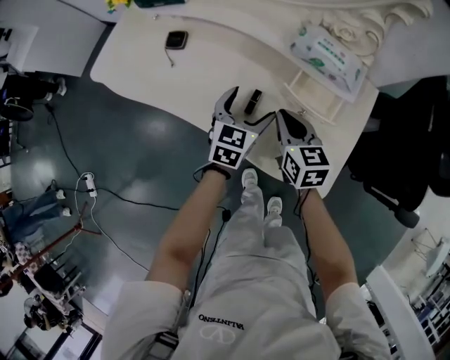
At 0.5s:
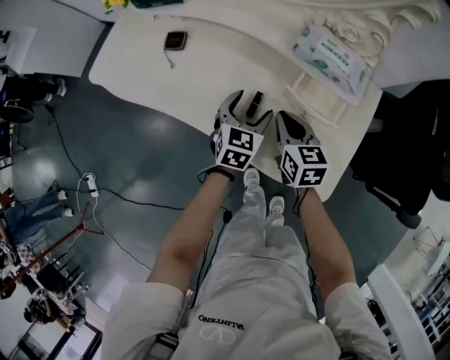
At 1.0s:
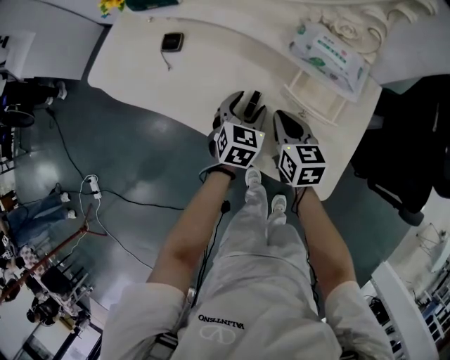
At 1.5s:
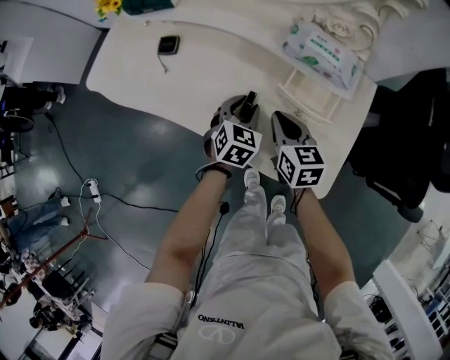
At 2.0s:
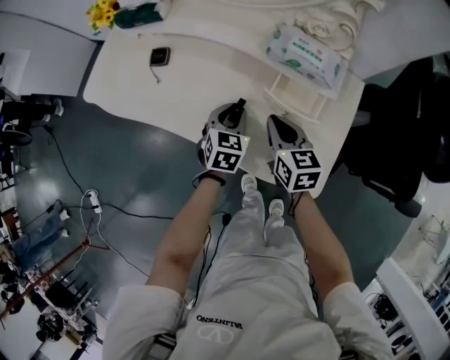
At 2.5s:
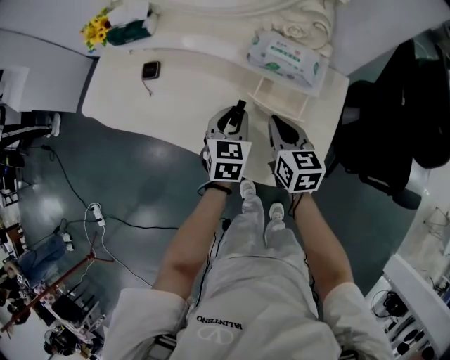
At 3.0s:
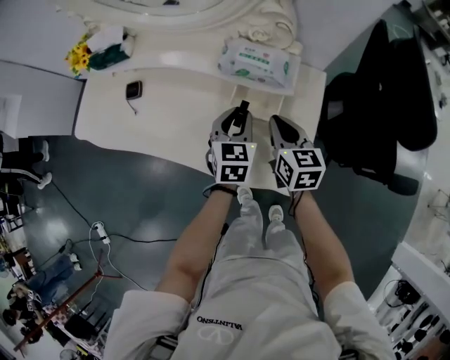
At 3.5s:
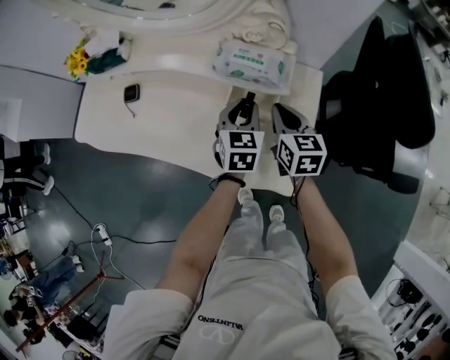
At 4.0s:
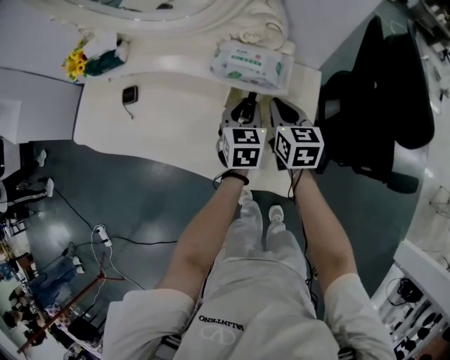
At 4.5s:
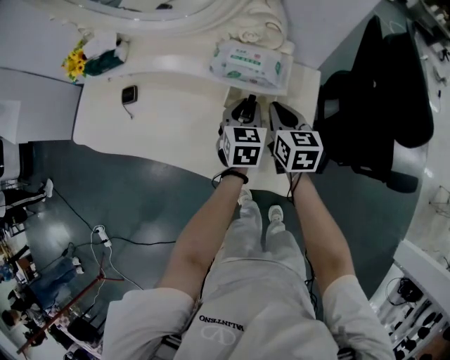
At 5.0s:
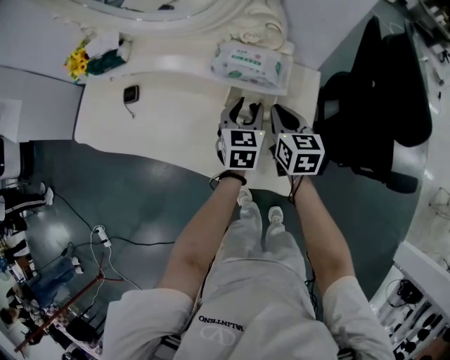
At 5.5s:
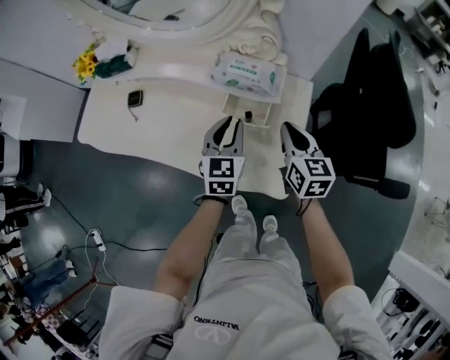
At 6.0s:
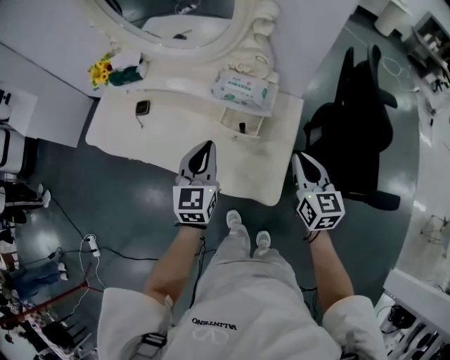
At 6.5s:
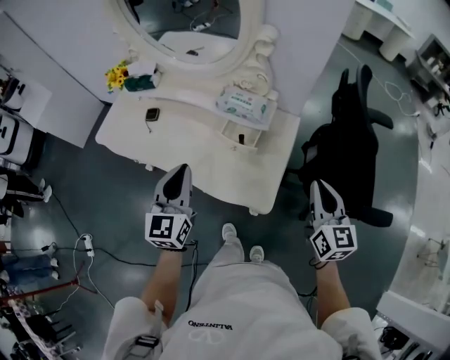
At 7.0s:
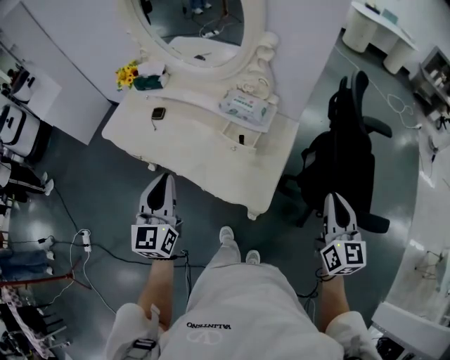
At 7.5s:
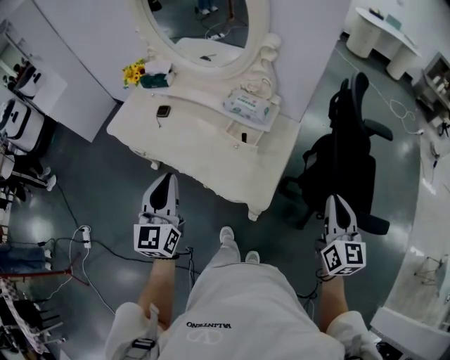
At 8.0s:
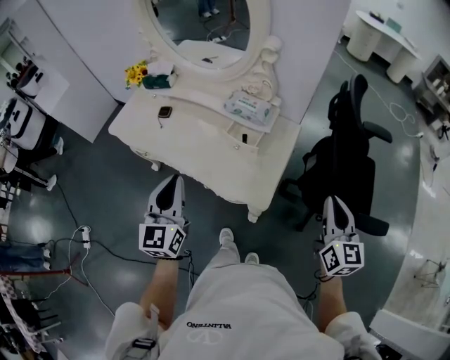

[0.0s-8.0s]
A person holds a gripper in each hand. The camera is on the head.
0.0s to 2.0s: The left gripper closes its fingers.
2.0s to 4.0s: The left gripper travels to the right and upward by roughly 15 cm. The right gripper moves to the right, approximately 15 cm.
4.0s to 6.0s: The left gripper moves upward, backward and to the left, roughly 20 cm, while the right gripper goes about 20 cm backward, upward and to the right.
6.0s to 8.0s: The right gripper shifts about 20 cm backward, to the right and upward. The left gripper shifts roughly 20 cm backward, upward and to the left.

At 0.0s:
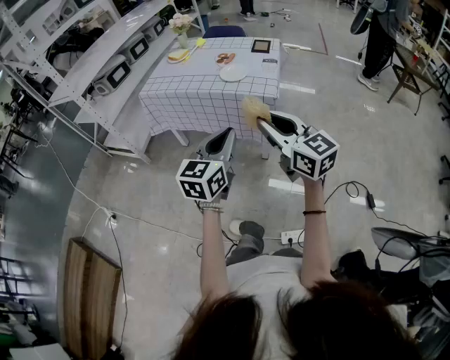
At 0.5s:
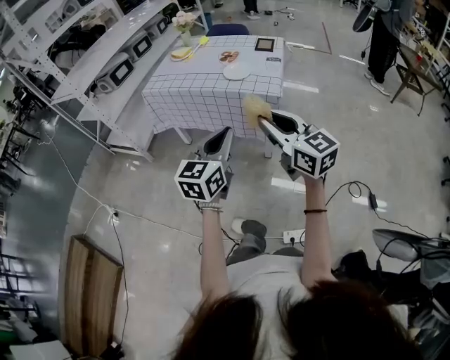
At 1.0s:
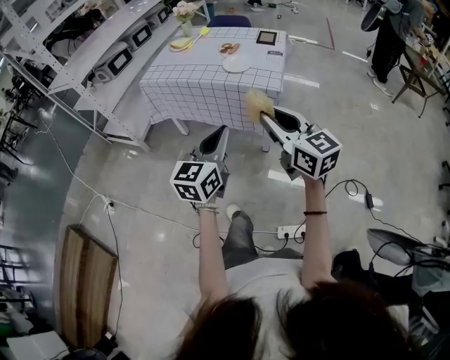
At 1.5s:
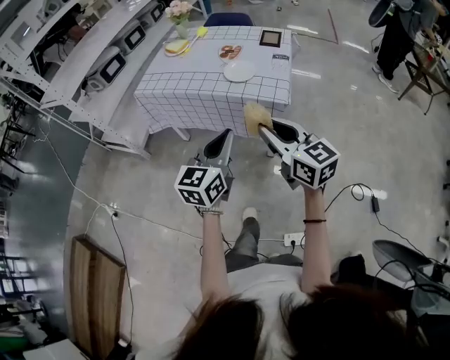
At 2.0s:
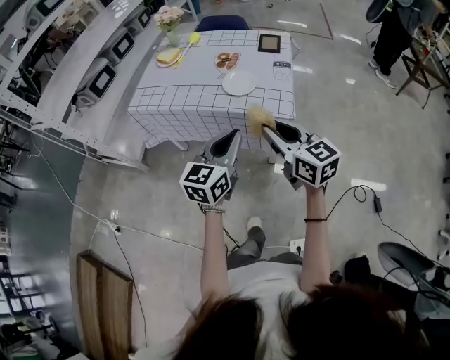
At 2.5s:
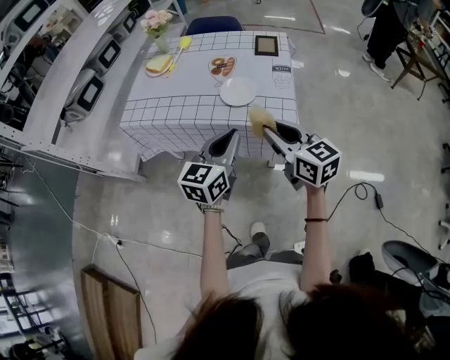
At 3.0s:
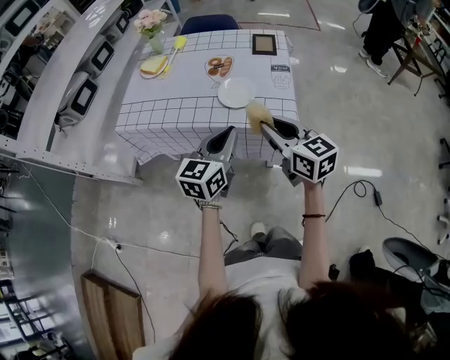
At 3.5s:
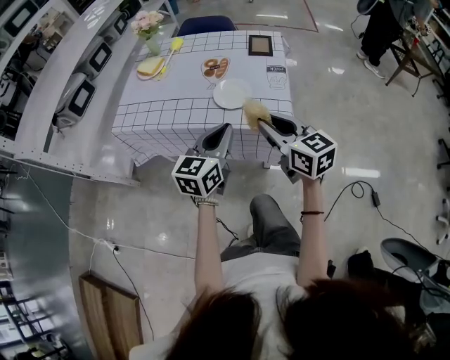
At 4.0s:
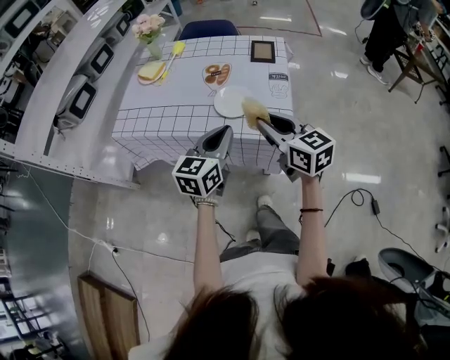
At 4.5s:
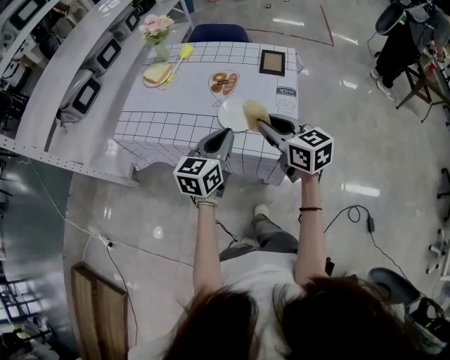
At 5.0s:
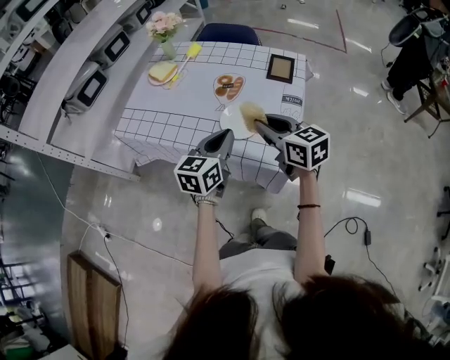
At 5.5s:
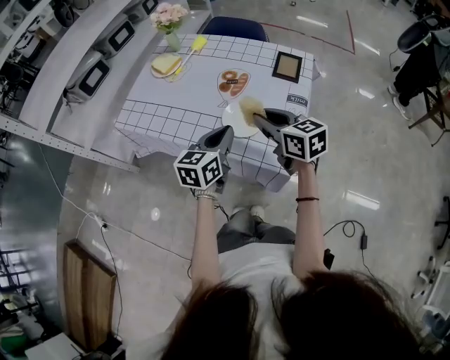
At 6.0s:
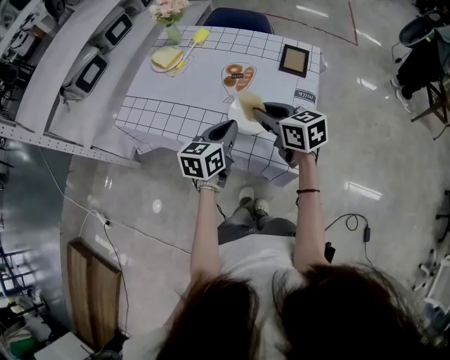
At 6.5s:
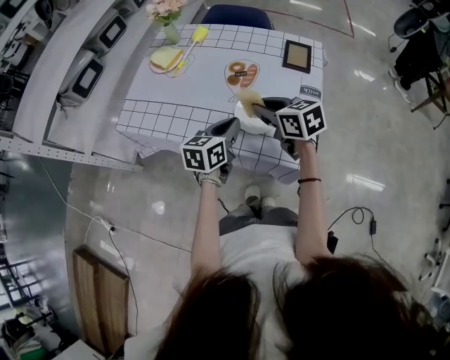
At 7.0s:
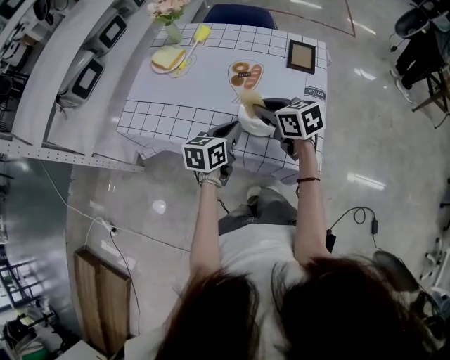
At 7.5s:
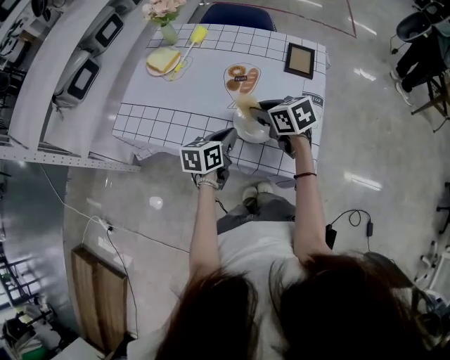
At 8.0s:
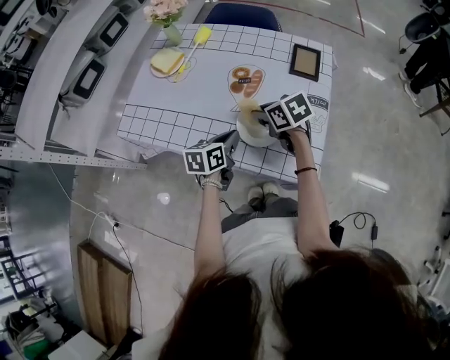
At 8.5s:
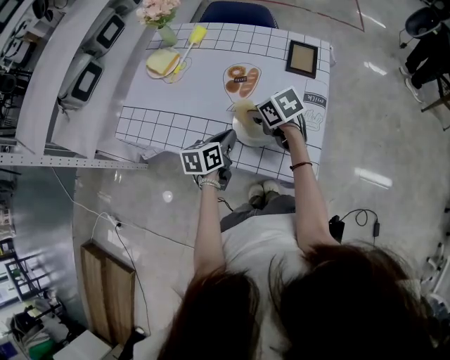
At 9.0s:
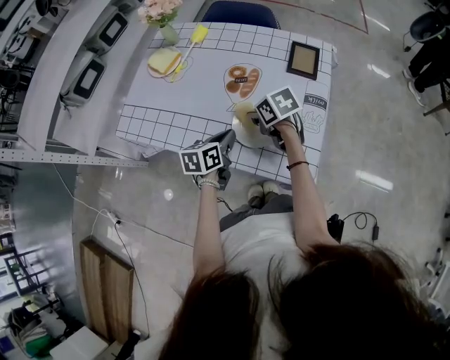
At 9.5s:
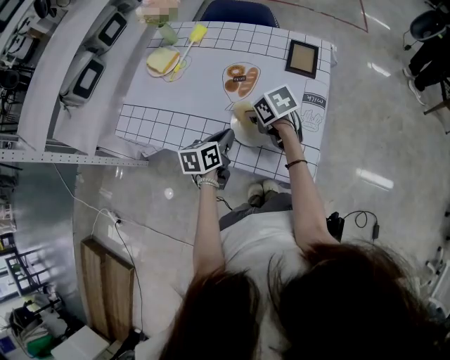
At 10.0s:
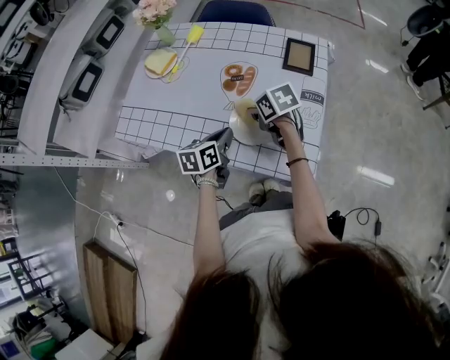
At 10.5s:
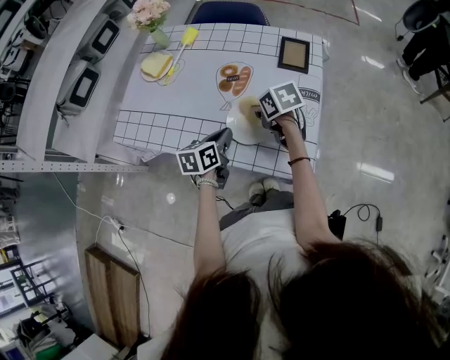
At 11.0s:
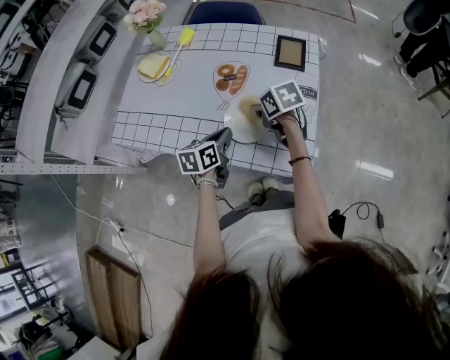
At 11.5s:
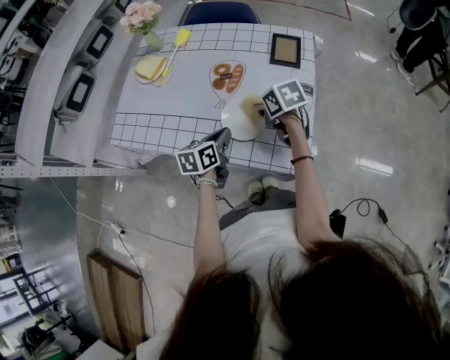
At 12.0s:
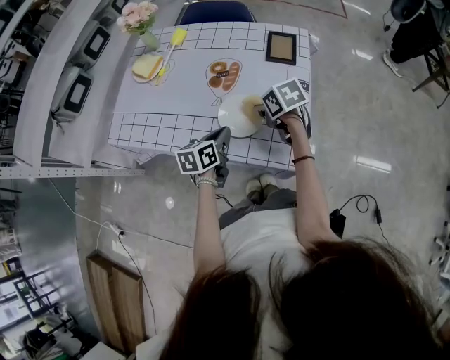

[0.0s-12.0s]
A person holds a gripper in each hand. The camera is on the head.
0.0s to 2.0s: Both grippers travel together forward, some 20 cm.
2.0s to 4.0s: Both grippers travel together forward, roughly 15 cm.
4.0s to 6.0s: The left gripper moves forward and downward, roughly 15 cm. Meanwhile the right gripper is displaced forward by about 15 cm.
6.0s to 8.0s: The left gripper travels downward by approximately 10 cm, while the right gripper goes some 10 cm downward and forward, and swivels roughly 20 degrees.
8.0s to 10.0s: There are only small adjustments of the grippers.
10.0s to 12.0s: The right gripper shifts approximately 5 cm to the right.

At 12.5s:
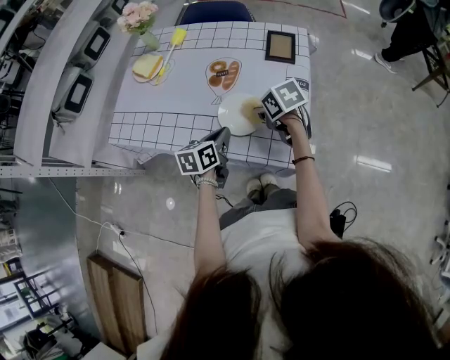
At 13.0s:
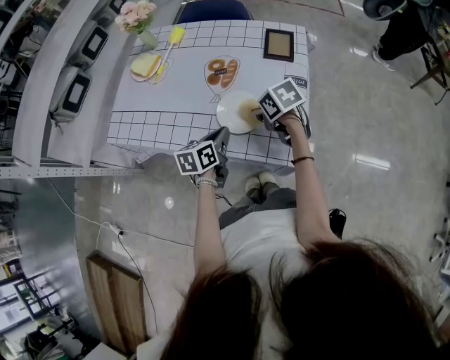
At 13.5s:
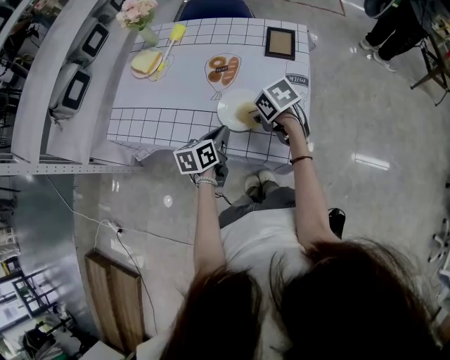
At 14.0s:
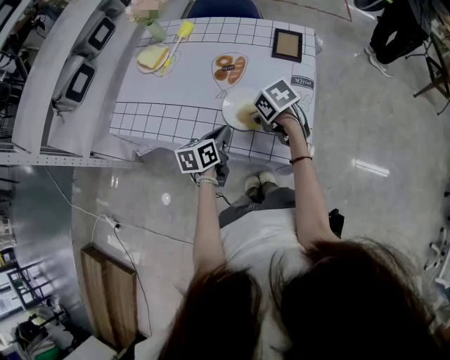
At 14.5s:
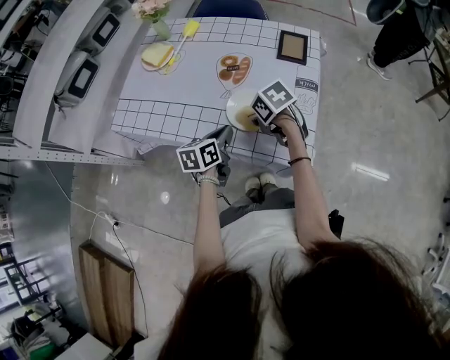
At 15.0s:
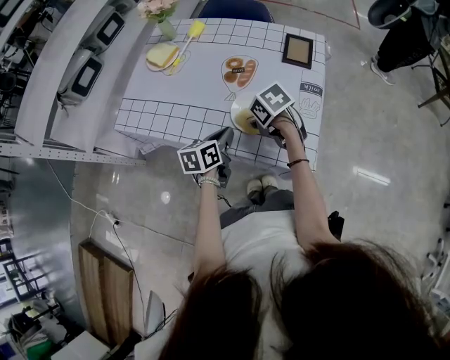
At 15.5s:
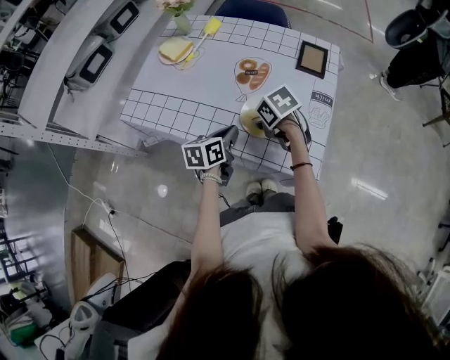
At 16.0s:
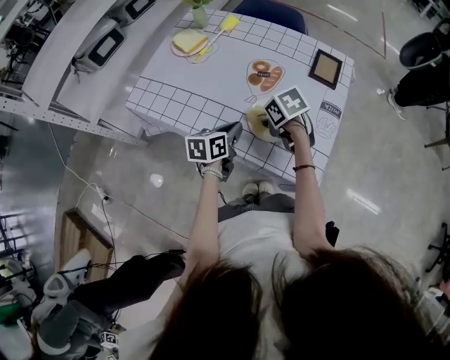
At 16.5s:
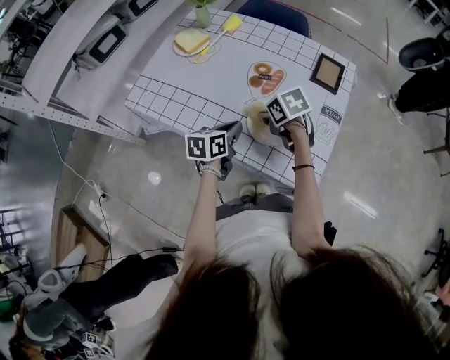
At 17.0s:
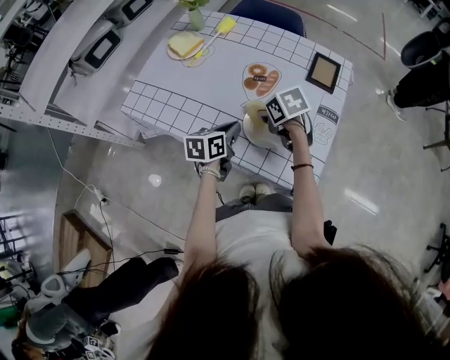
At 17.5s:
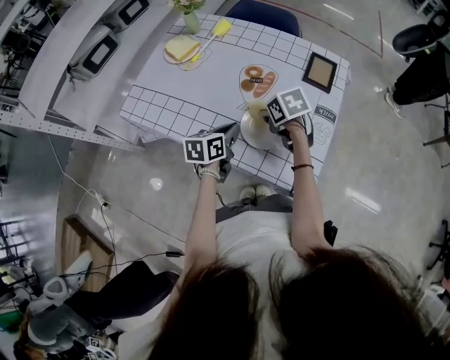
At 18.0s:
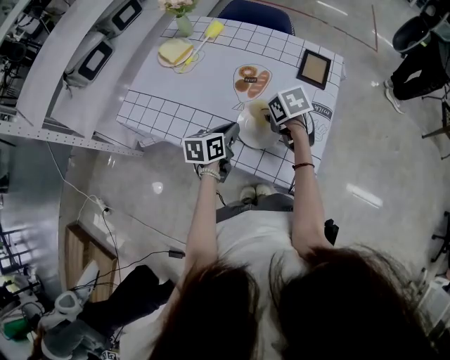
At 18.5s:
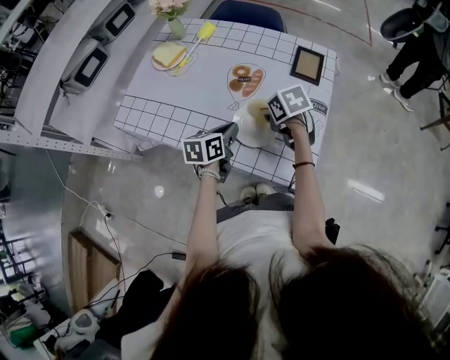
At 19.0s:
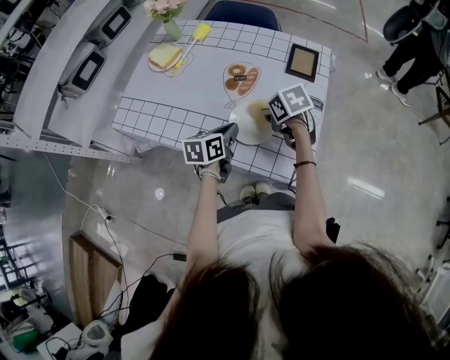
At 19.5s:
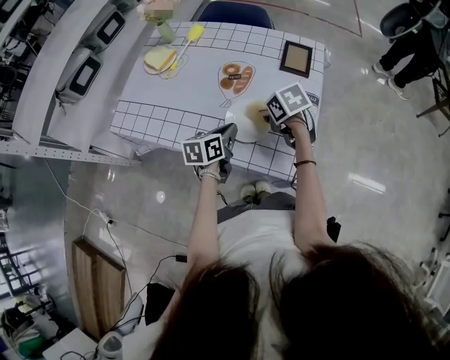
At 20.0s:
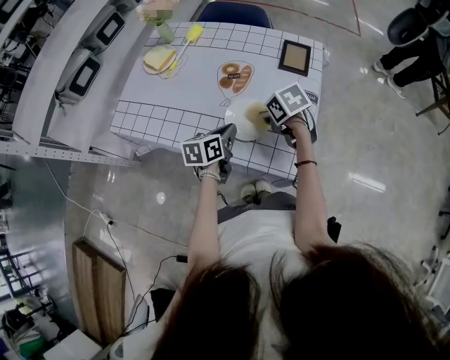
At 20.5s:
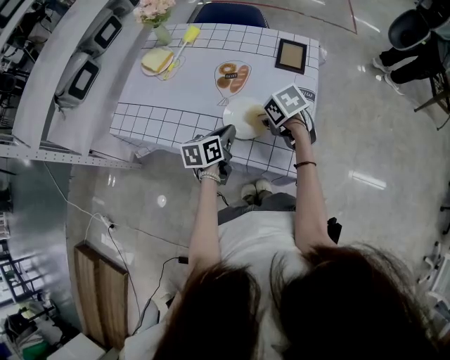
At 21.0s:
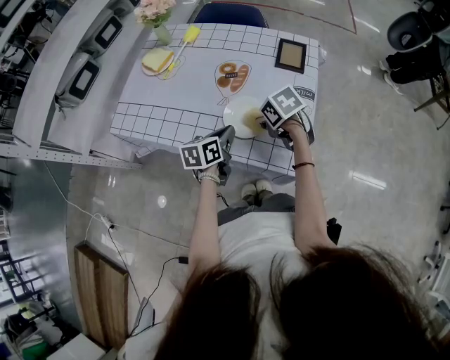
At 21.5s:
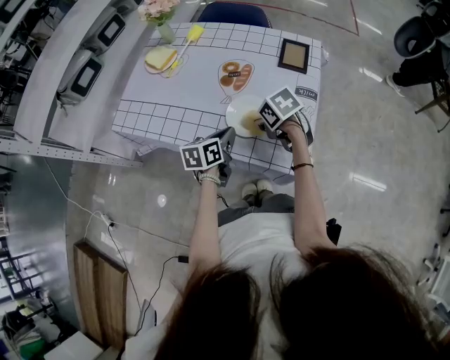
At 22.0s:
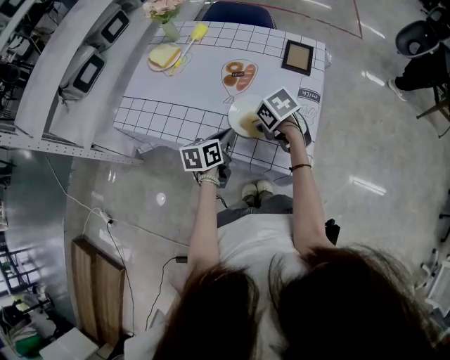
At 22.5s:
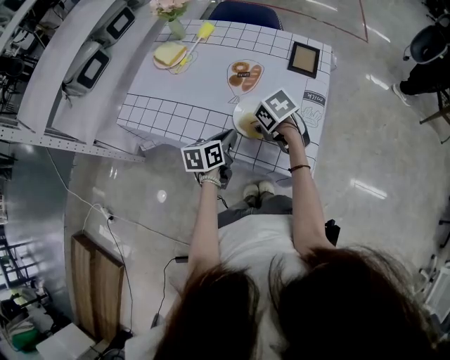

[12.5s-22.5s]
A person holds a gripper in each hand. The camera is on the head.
12.5s to 14.5s: The right gripper travels to the left by about 5 cm.
14.5s to 16.5s: The right gripper is displaced forward by about 5 cm.
16.5s to 18.5s: The right gripper heads to the right, covering approximately 5 cm.
18.5s to 20.5s: The right gripper travels backward by approximately 5 cm.
20.5s to 22.5s: The right gripper moves to the left, approximately 5 cm.
